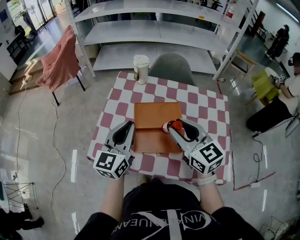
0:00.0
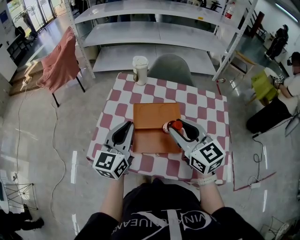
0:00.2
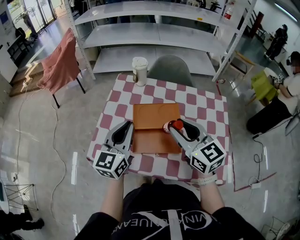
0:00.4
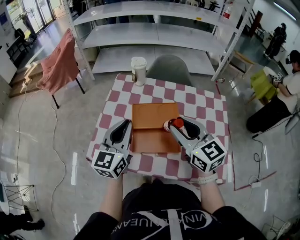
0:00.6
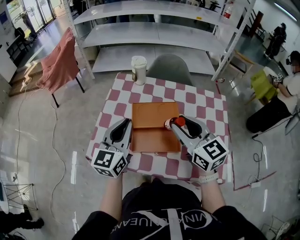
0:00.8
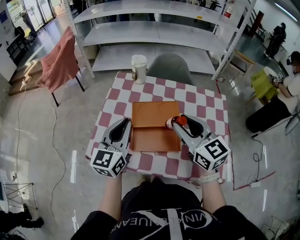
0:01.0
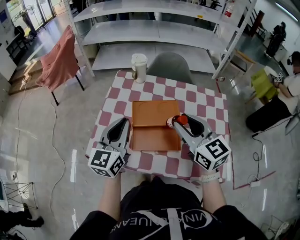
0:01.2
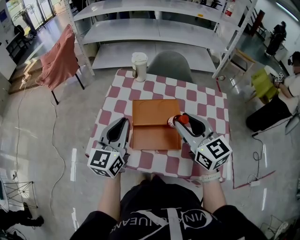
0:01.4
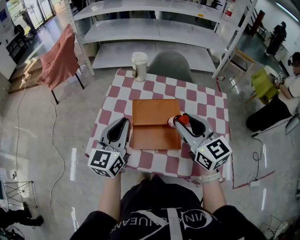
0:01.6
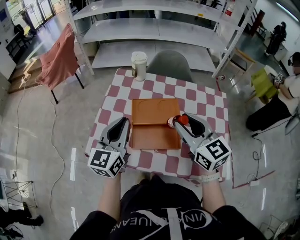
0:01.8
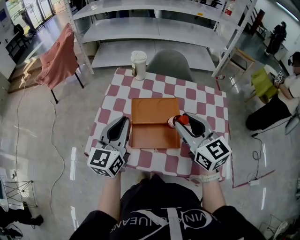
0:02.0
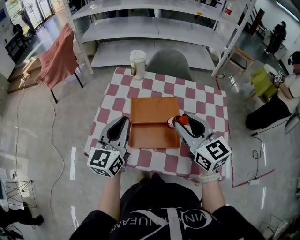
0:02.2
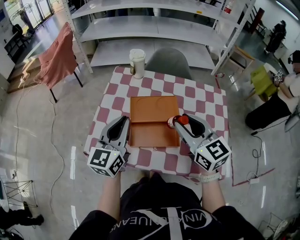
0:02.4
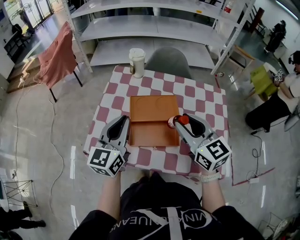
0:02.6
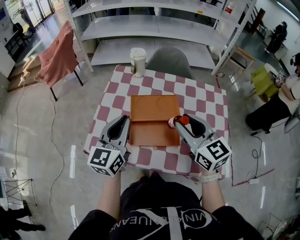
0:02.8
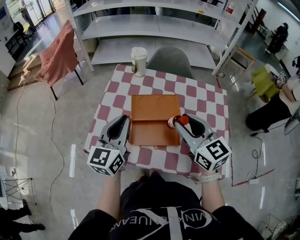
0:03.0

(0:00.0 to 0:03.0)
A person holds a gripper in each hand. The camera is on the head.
0:00.0 - 0:03.0: The grippers make only small movements.

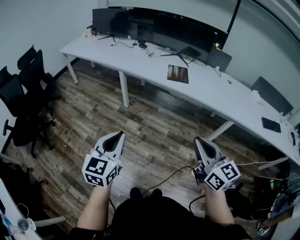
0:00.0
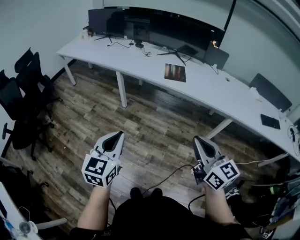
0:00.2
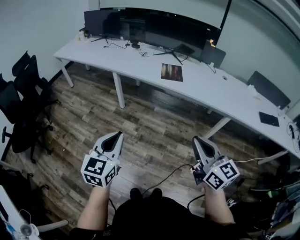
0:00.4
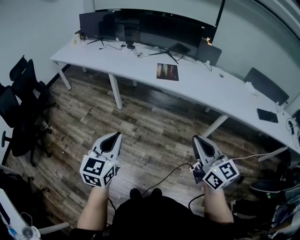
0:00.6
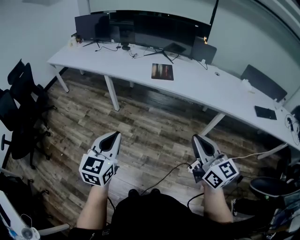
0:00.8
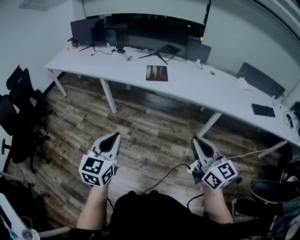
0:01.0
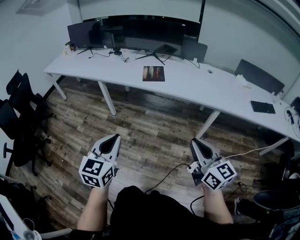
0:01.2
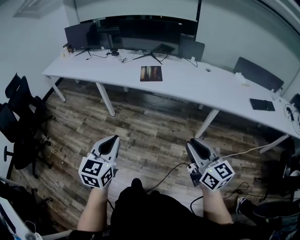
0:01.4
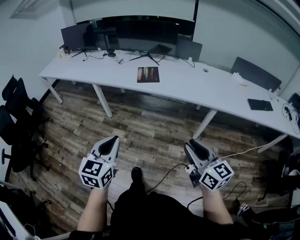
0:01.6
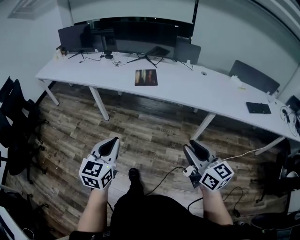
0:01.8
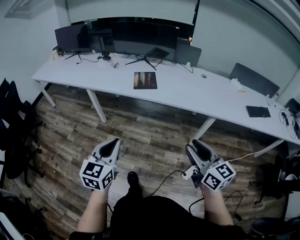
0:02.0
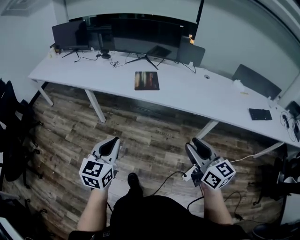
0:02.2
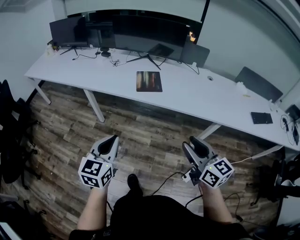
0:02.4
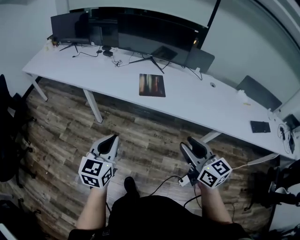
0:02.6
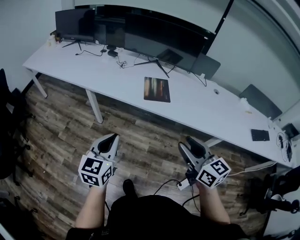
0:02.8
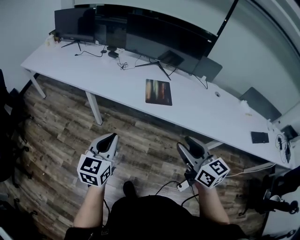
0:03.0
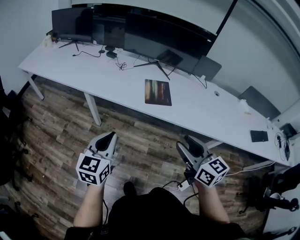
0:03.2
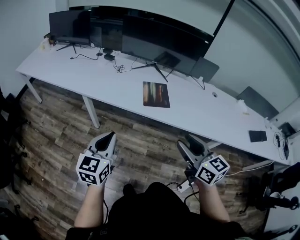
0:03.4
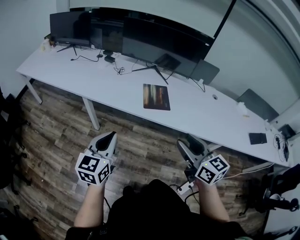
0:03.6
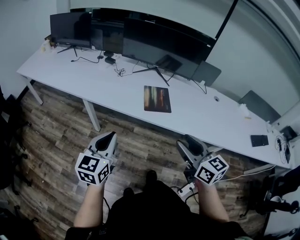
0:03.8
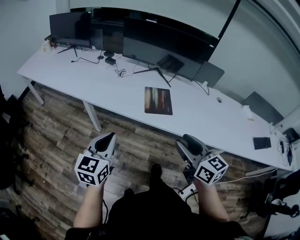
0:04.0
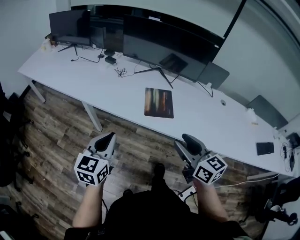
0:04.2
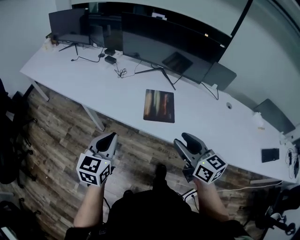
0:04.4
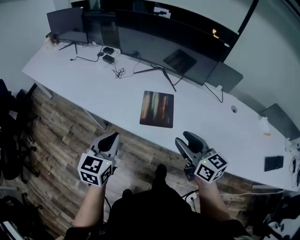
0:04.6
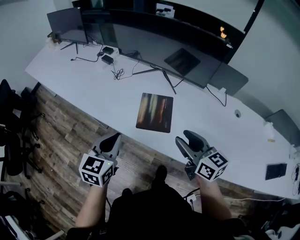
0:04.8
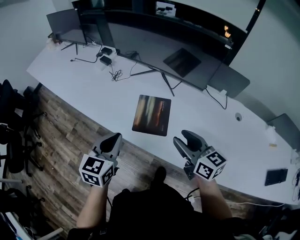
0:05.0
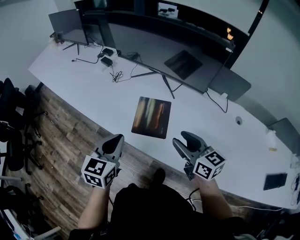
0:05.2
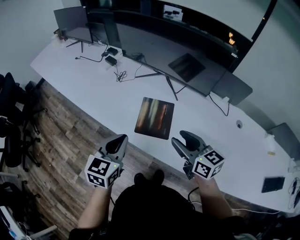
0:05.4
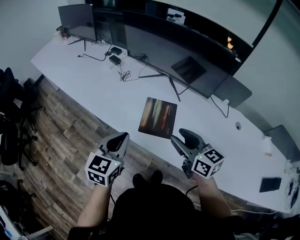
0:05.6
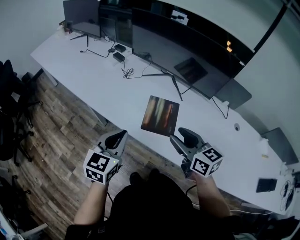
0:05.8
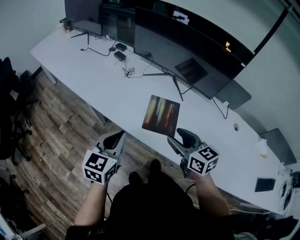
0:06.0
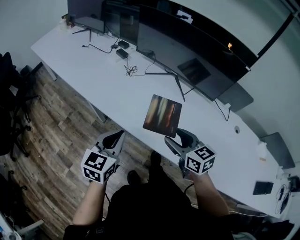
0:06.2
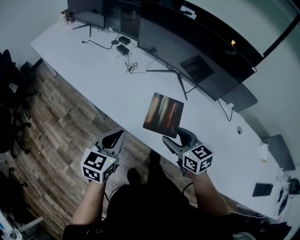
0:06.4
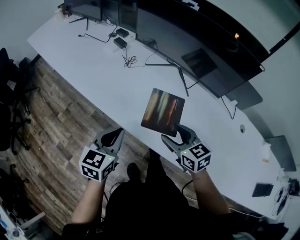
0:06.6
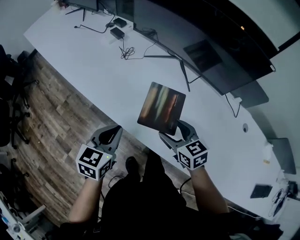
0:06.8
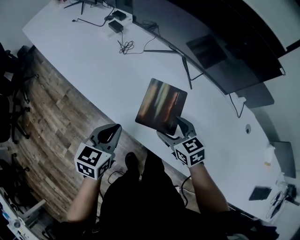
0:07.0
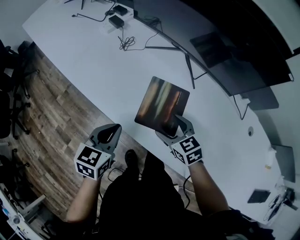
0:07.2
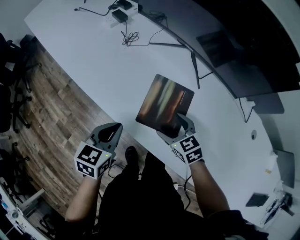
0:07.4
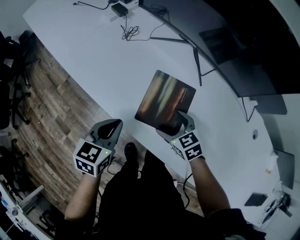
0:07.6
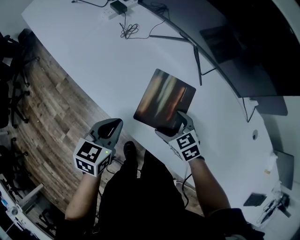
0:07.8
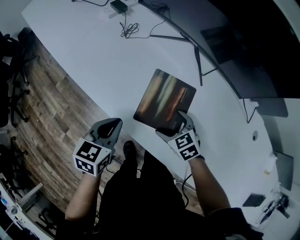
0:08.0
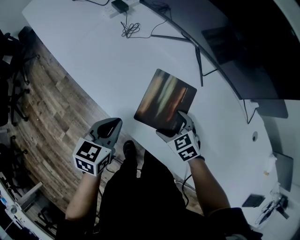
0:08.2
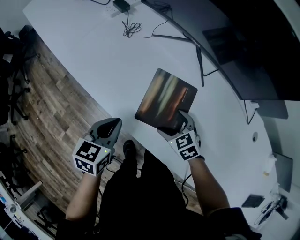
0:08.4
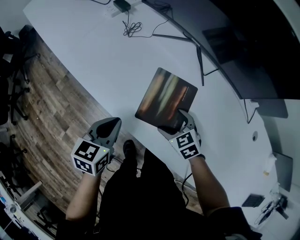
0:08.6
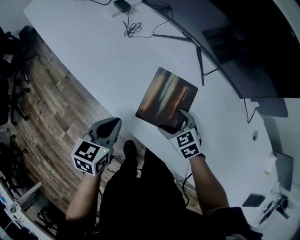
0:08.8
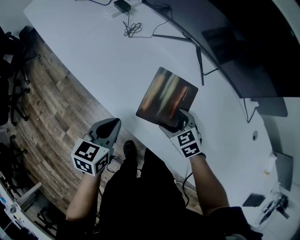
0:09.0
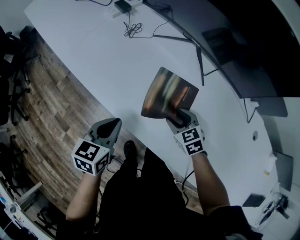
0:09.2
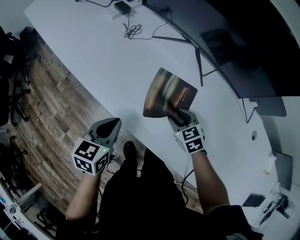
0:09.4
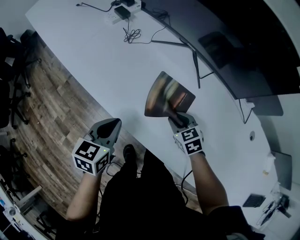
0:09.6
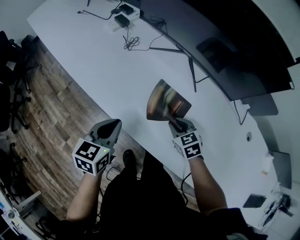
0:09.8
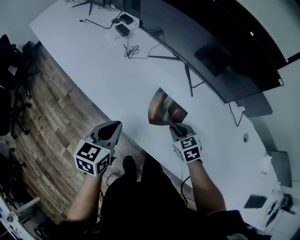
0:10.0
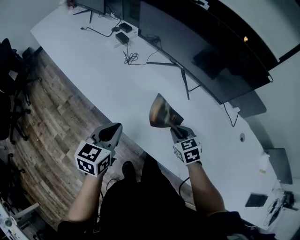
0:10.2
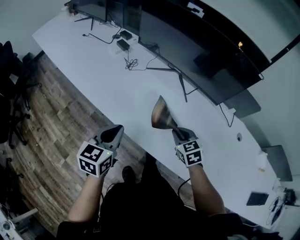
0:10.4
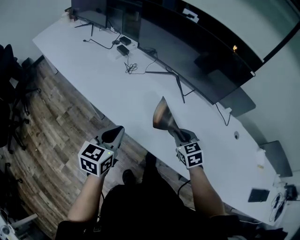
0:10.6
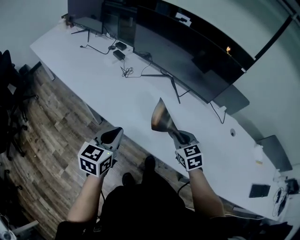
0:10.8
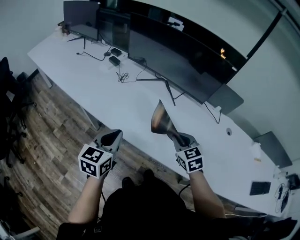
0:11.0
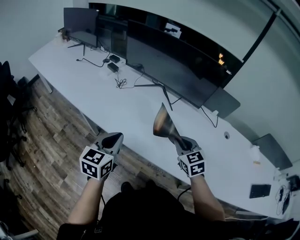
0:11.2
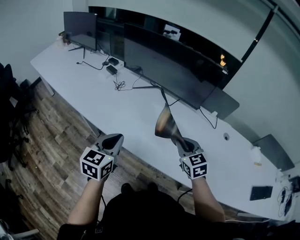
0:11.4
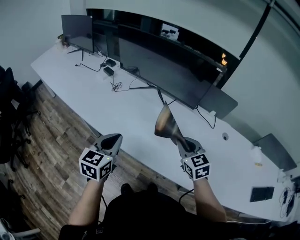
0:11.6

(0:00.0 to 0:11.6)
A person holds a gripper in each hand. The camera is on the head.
0:00.0 - 0:01.4: The two grippers go about 15 cm to the right.
0:01.4 - 0:02.8: The two grippers go roughly 30 cm forward.
0:02.8 - 0:04.4: Both grippers move forward, approximately 20 cm.
0:04.4 - 0:05.8: The right gripper goes approximately 10 cm forward, and goes to the right and returns, some 15 cm each way. Meanwhile the left gripper is displaced to the right and forward by about 10 cm.
0:05.8 - 0:07.2: The two grippers go some 20 cm downward and forward. The right gripper changes its angle by about 30 degrees.
0:07.2 - 0:08.8: The right gripper heads downward, covering approximately 10 cm.
0:08.8 - 0:10.2: The two grippers go approximately 10 cm upward. The right gripper closes.
0:10.2 - 0:11.6: The right gripper goes roughly 20 cm upward, to the right and backward, and changes its angle by about 20 degrees. The left gripper travels upward, to the right and backward by about 15 cm.

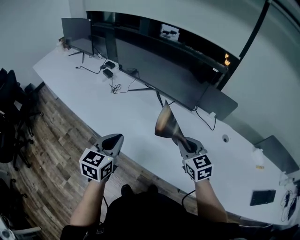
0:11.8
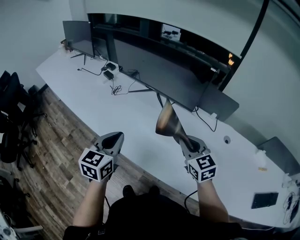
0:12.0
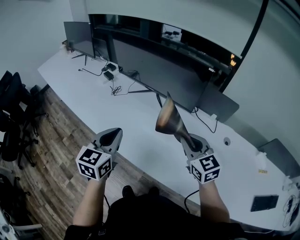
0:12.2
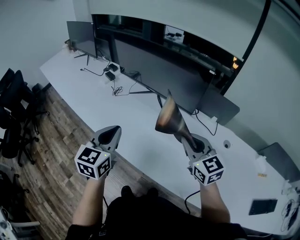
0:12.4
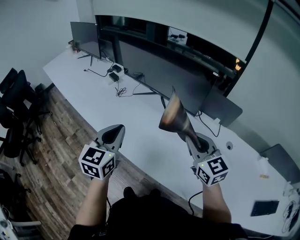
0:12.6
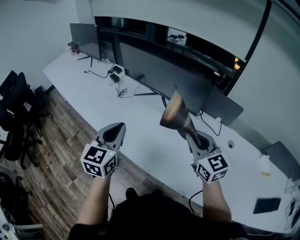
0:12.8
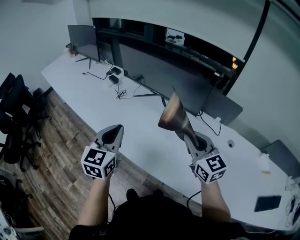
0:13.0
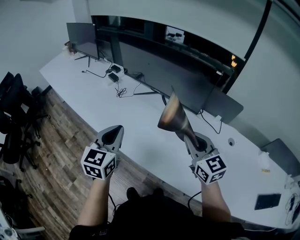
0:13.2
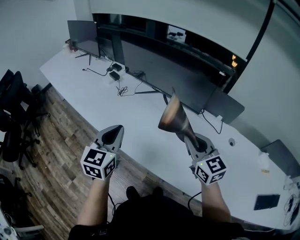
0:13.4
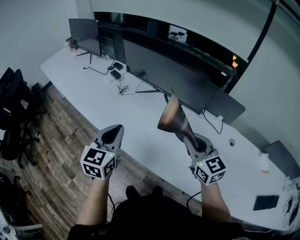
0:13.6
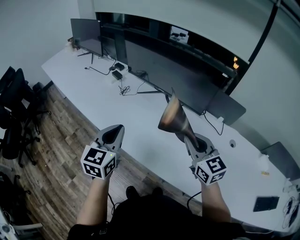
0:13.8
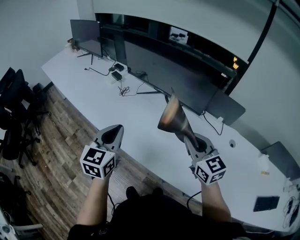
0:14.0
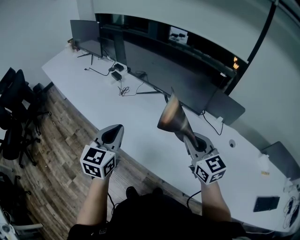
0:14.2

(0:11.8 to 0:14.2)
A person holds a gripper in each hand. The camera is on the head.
0:11.8 - 0:13.0: Both grippers move upward, some 10 cm.
0:13.0 - 0:14.2: The grippers stay close to where they were, moving slightly.

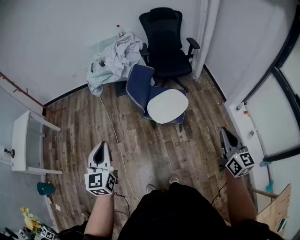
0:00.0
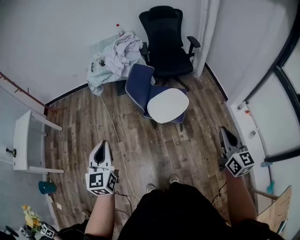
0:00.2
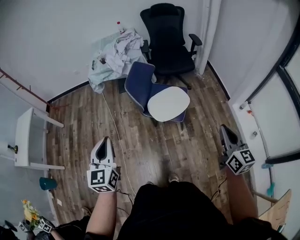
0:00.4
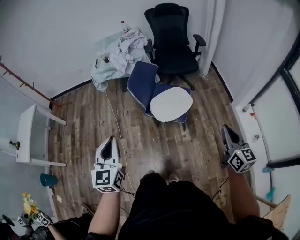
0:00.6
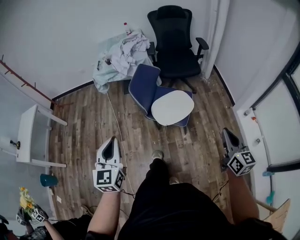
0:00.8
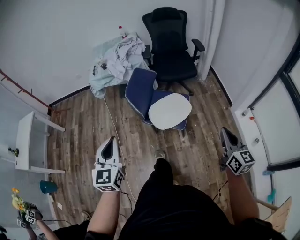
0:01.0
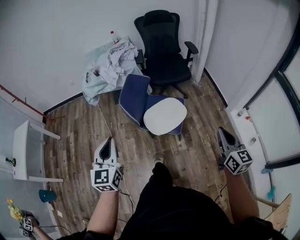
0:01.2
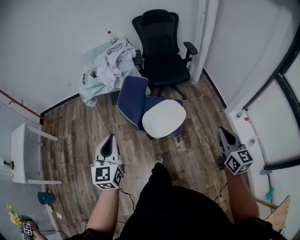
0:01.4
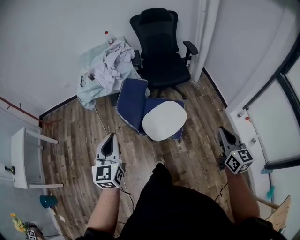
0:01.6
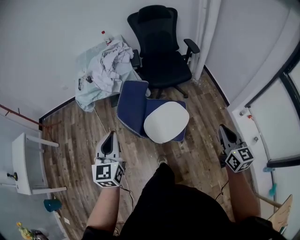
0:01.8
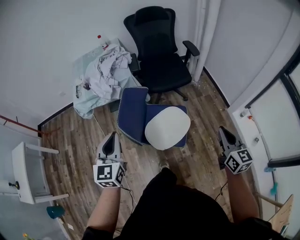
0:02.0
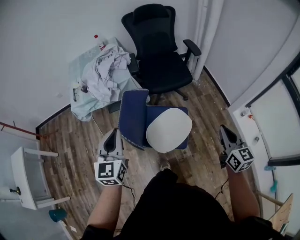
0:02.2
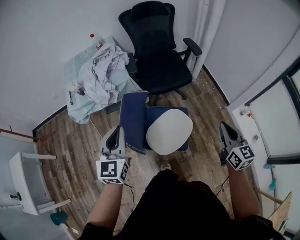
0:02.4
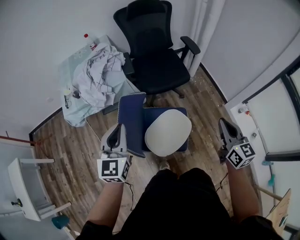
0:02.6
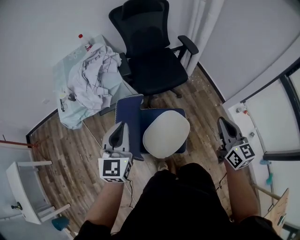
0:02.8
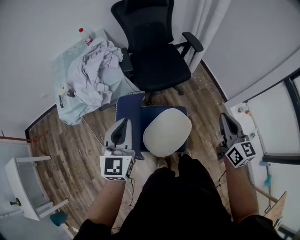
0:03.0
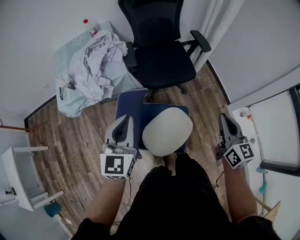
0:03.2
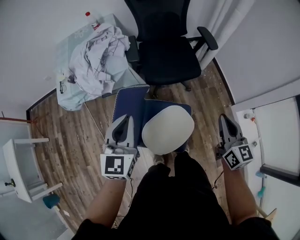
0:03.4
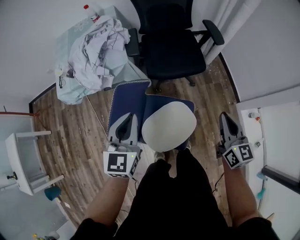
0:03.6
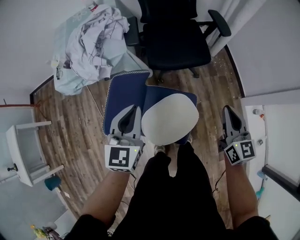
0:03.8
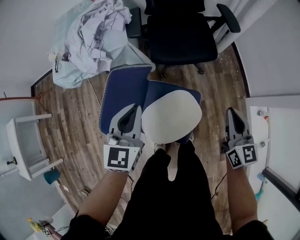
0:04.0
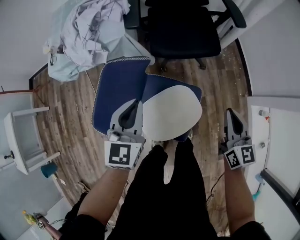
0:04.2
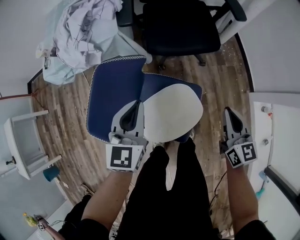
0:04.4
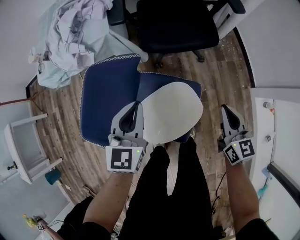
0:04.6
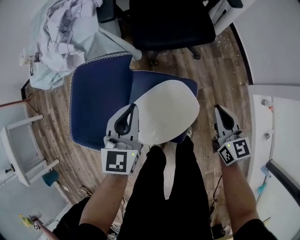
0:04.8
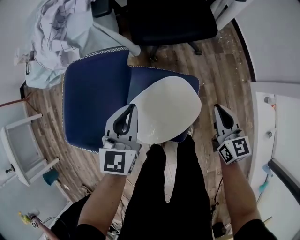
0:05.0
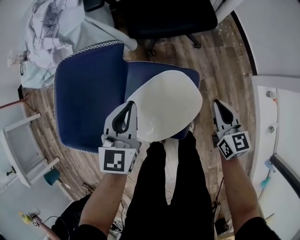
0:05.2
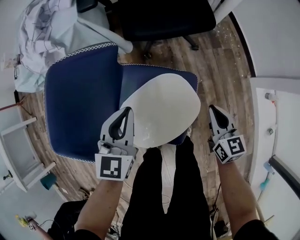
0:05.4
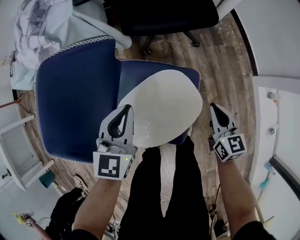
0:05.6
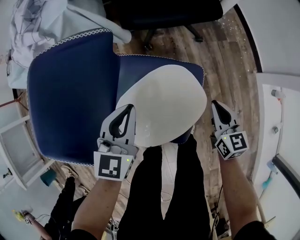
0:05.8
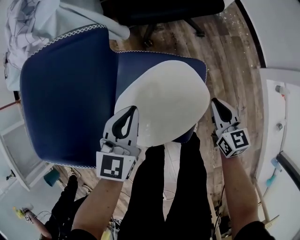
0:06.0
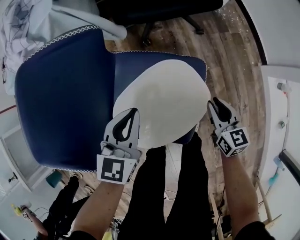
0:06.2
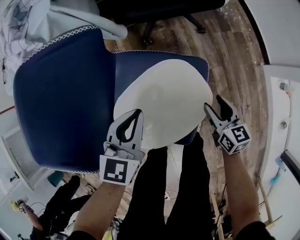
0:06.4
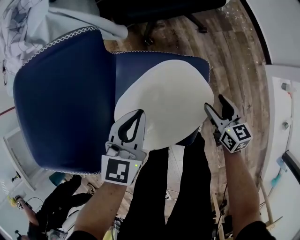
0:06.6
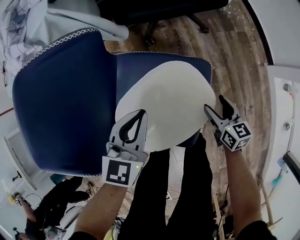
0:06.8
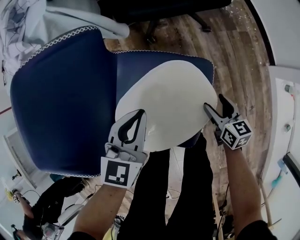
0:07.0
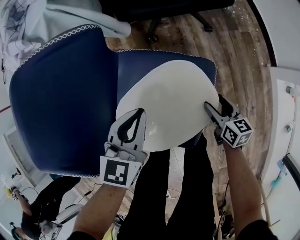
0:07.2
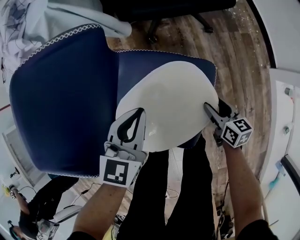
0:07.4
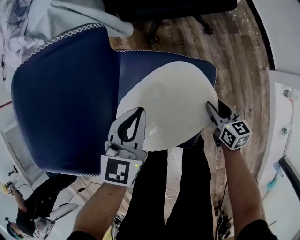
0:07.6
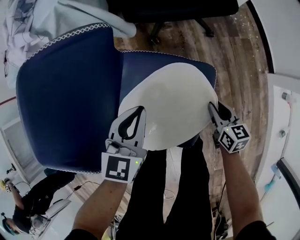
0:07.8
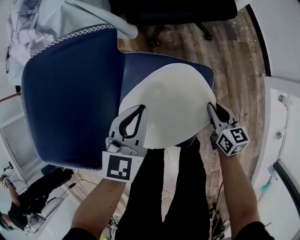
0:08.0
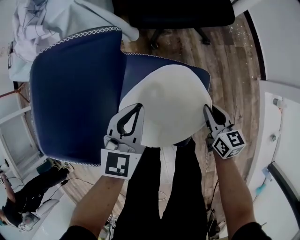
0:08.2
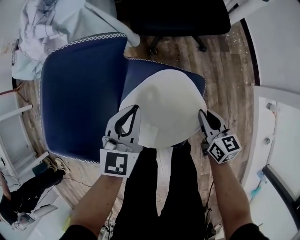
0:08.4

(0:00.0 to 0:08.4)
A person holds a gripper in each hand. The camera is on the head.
0:00.0 - 0:01.4: Both grippers move forward and to the right, some 15 cm.
0:01.4 - 0:02.8: The grippers both shift forward by some 30 cm.
0:02.8 - 0:04.2: The right gripper is displaced downward and forward by approximately 25 cm; the left gripper goes approximately 20 cm downward, to the right and forward.
0:04.2 - 0:05.6: Both grippers travel together downward, about 25 cm.
0:05.6 - 0:07.0: The right gripper moves downward, roughly 15 cm, and opens up, while the left gripper goes some 10 cm downward.
0:07.0 - 0:08.4: The left gripper shifts approximately 5 cm upward; the right gripper moves upward, some 10 cm, and closes.
